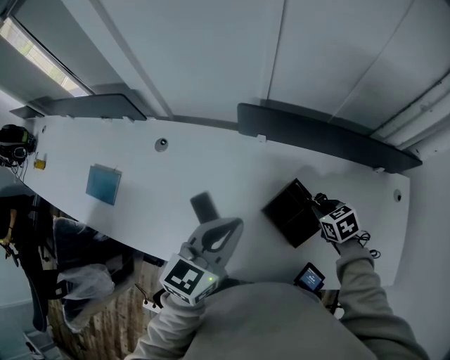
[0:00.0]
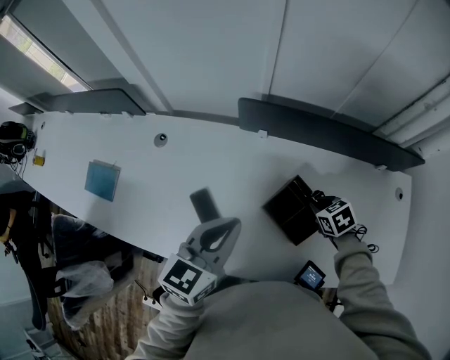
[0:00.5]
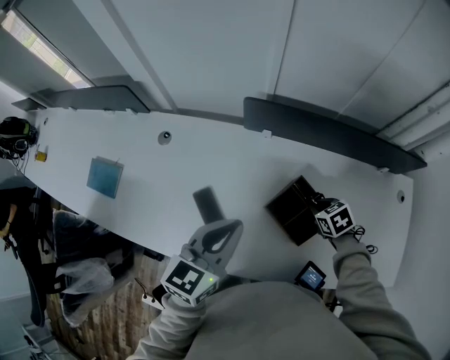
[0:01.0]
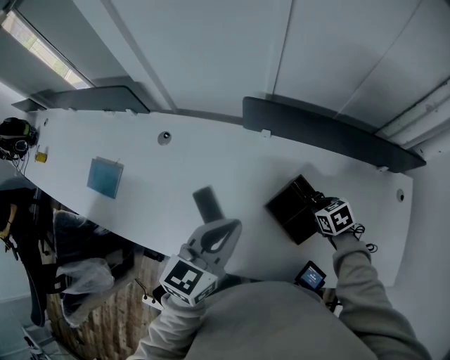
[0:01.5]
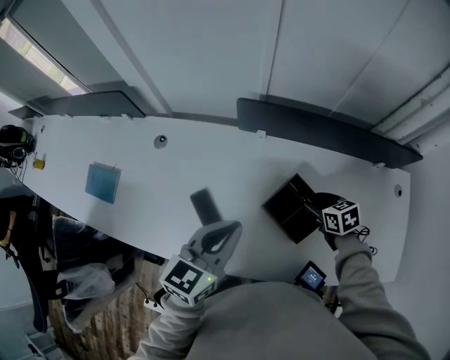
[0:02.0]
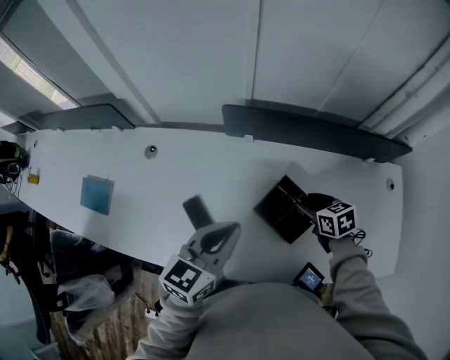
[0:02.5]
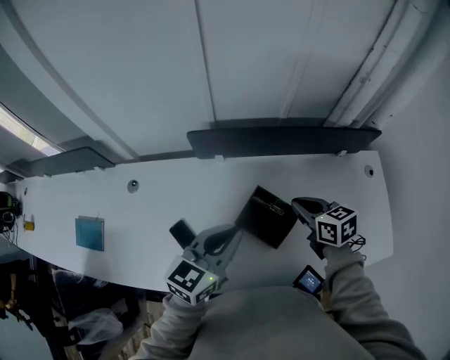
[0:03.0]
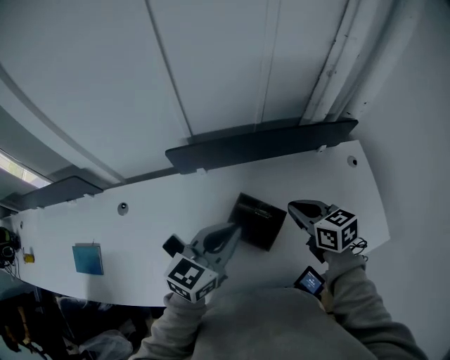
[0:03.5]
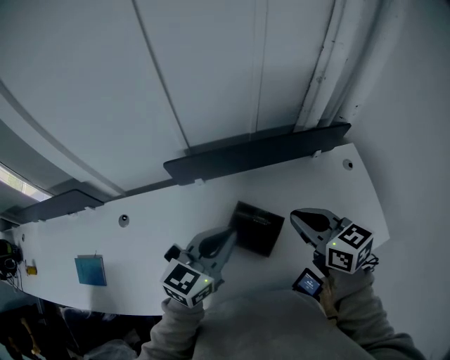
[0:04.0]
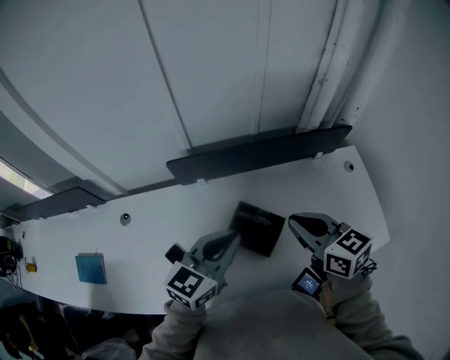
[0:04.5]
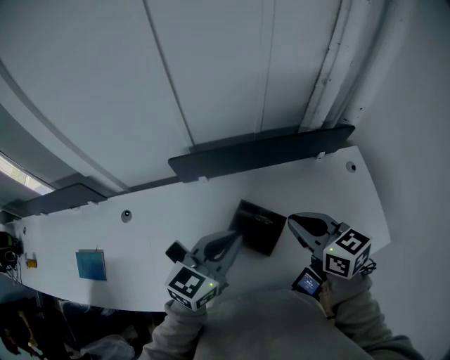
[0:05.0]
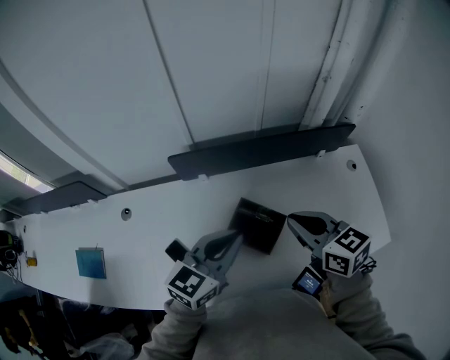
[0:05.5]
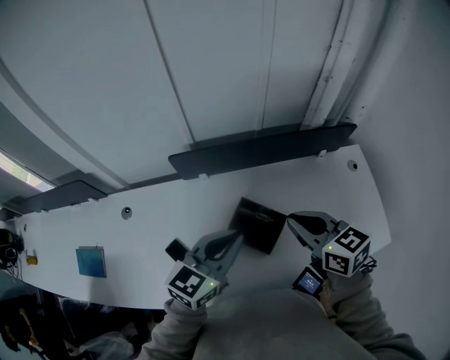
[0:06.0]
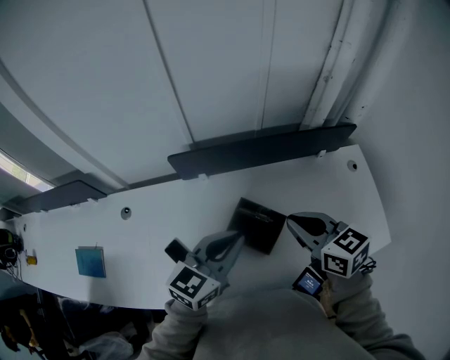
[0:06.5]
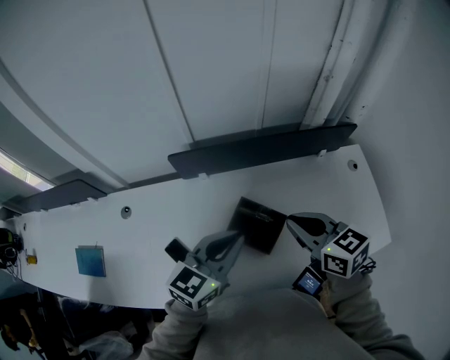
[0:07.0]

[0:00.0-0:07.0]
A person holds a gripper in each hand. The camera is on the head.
0:00.0 to 0:02.0: The right gripper opens.
0:02.0 to 0:03.5: The right gripper travels upward by roughly 15 cm, turns by about 30 degrees, and closes. Meanwhile the left gripper goes some 10 cm to the right, and changes its angle by roughly 20 degrees.
0:03.5 to 0:05.0: The right gripper moves upward, roughly 10 cm.
0:05.0 to 0:07.0: The two grippers keep their place.

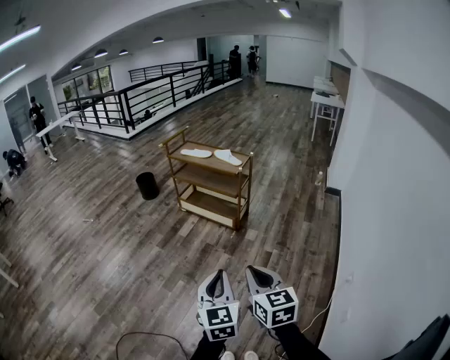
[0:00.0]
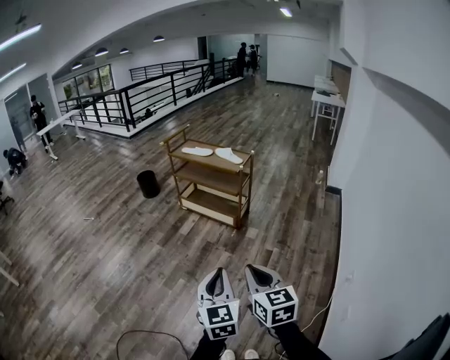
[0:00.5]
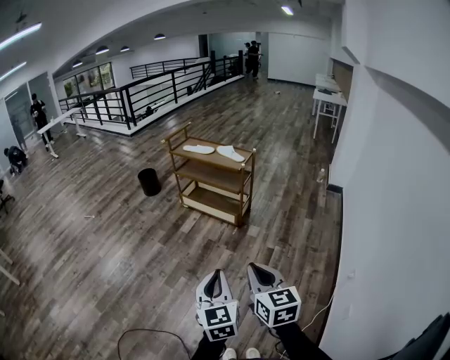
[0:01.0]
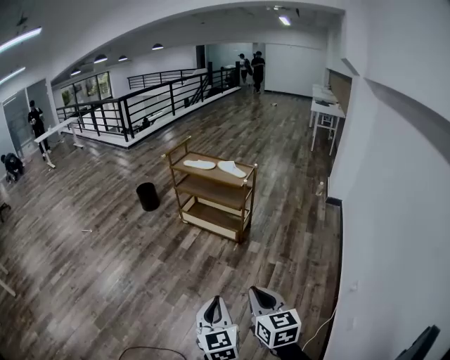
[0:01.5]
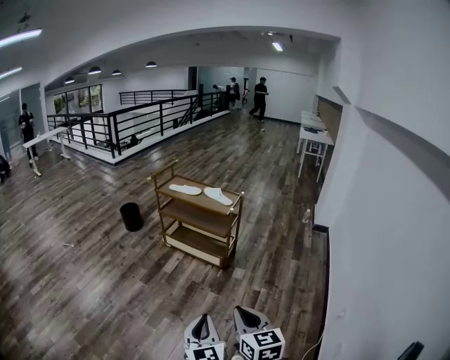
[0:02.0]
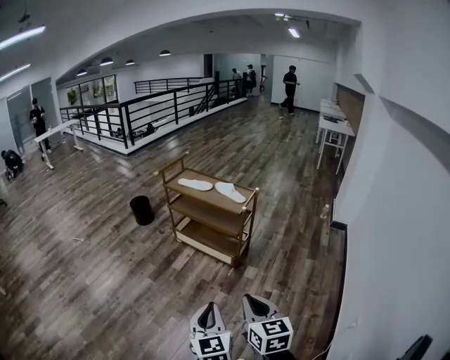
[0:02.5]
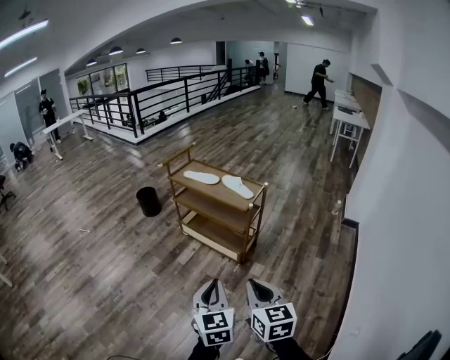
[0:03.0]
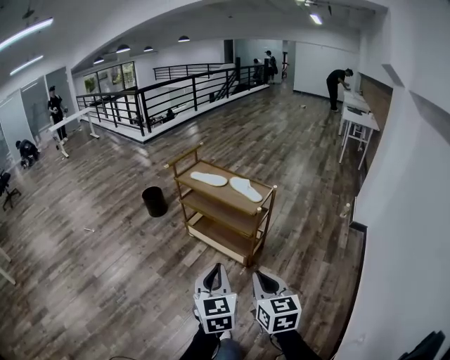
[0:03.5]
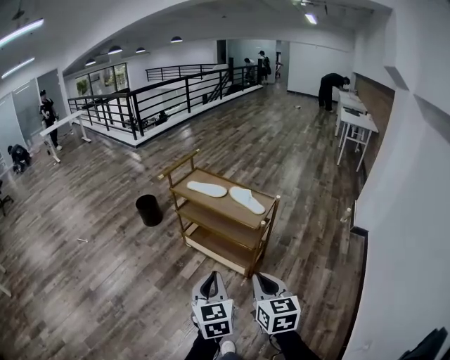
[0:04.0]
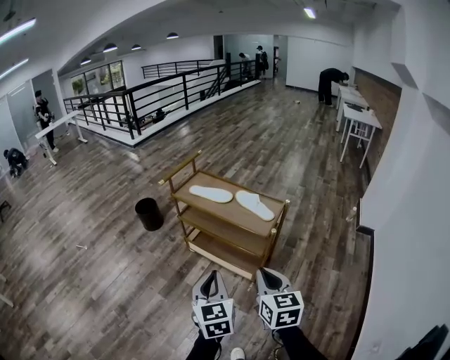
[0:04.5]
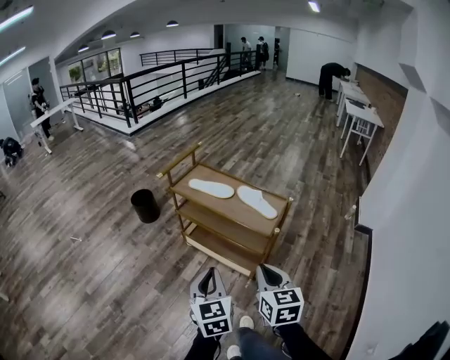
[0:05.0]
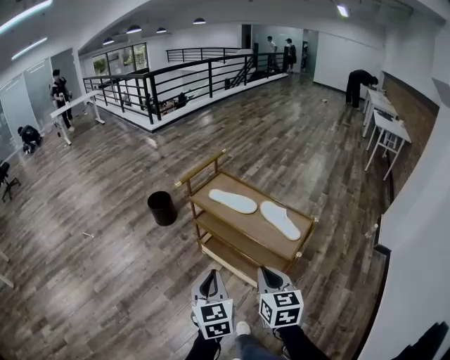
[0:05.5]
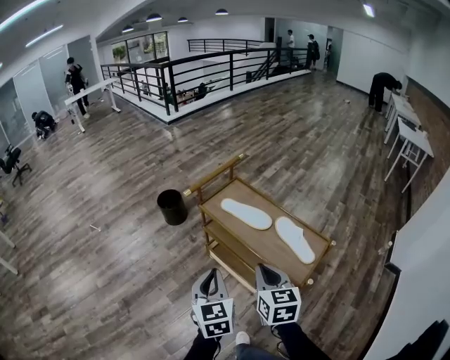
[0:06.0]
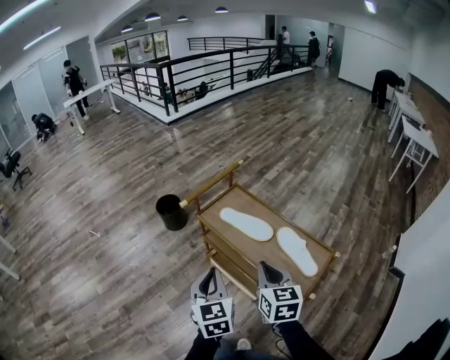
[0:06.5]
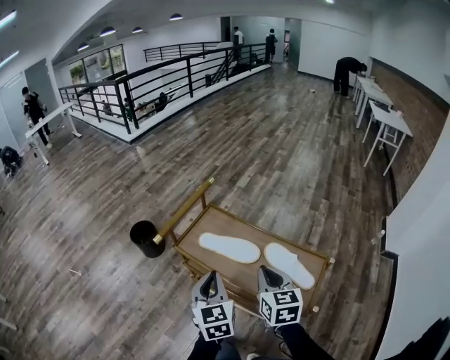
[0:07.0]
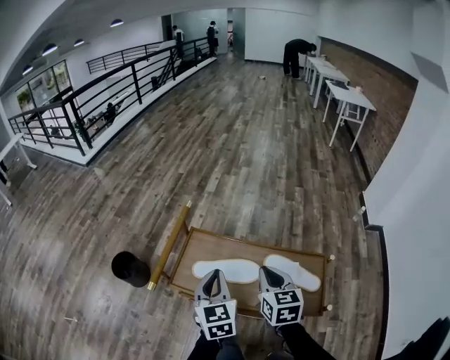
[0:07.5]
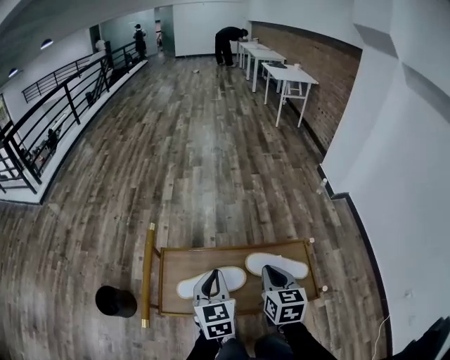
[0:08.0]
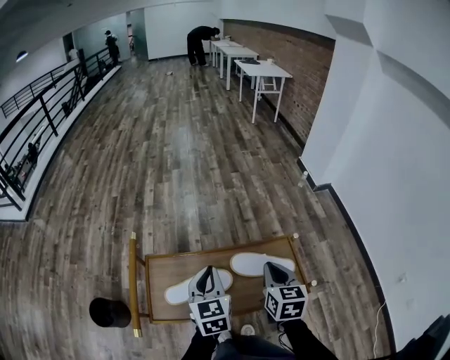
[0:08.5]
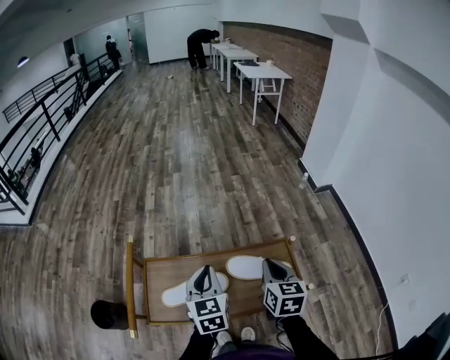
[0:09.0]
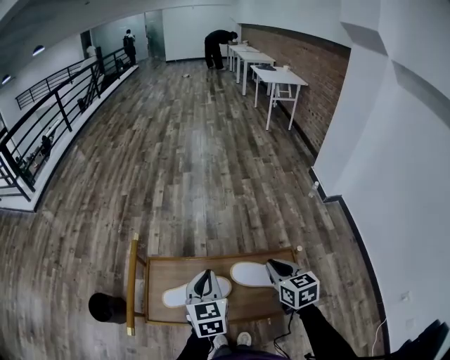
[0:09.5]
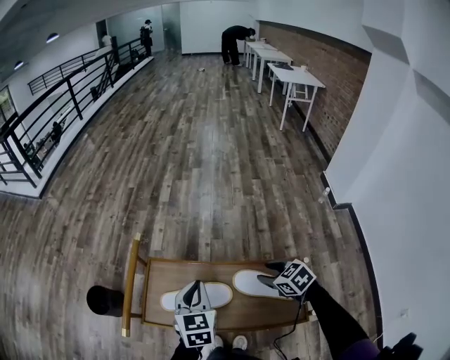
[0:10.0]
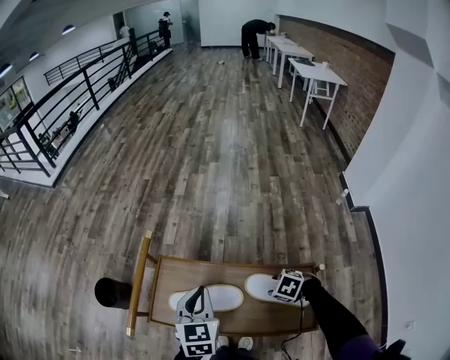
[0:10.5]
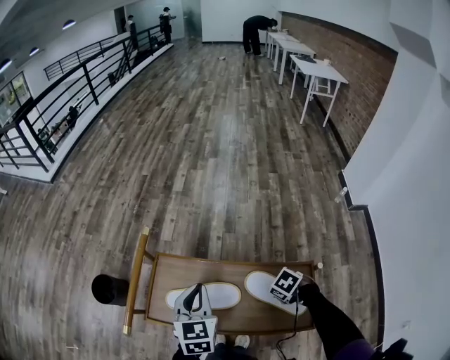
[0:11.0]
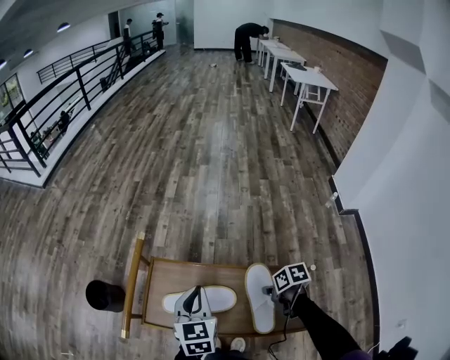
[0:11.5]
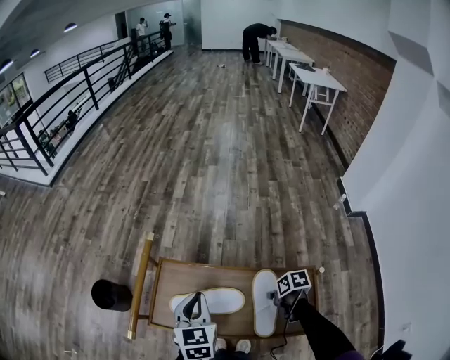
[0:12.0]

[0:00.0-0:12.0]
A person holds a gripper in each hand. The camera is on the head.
0:00.0 to 0:02.0: Both grippers travel together forward, about 10 cm.
0:02.0 to 0:04.0: The two grippers go approximately 35 cm forward.
0:04.0 to 0:06.0: The two grippers go some 35 cm forward.
0:06.0 to 0:08.0: The left gripper moves some 40 cm, and swivels some 50 degrees. The right gripper changes place by about 25 cm, and changes its angle by about 50 degrees.
0:08.0 to 0:10.0: The right gripper travels downward by roughly 10 cm, rotates roughly 50 degrees, and opens.
0:10.0 to 0:12.0: The right gripper is displaced downward by roughly 10 cm, rotates around the line of its fingers by about 50 degrees, clockwise from behind, and closes.

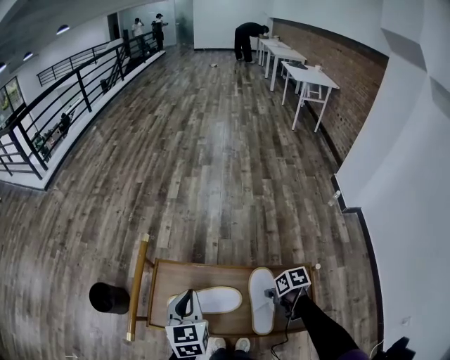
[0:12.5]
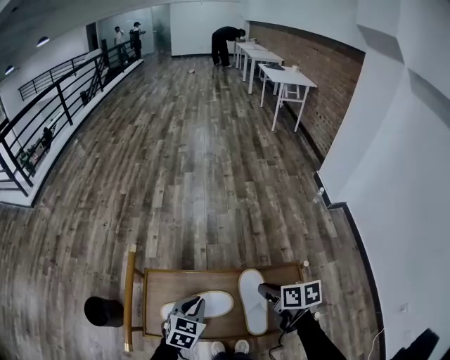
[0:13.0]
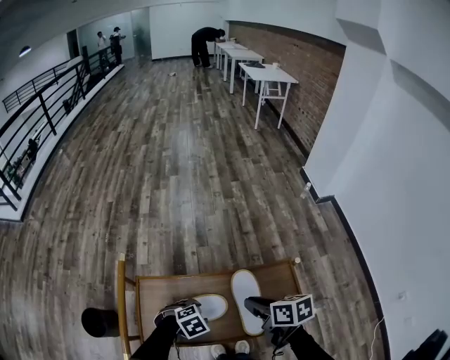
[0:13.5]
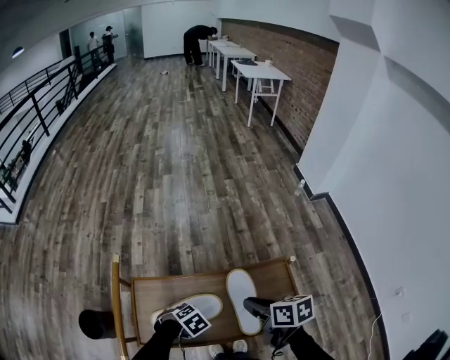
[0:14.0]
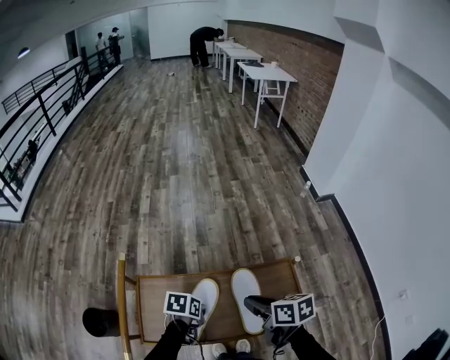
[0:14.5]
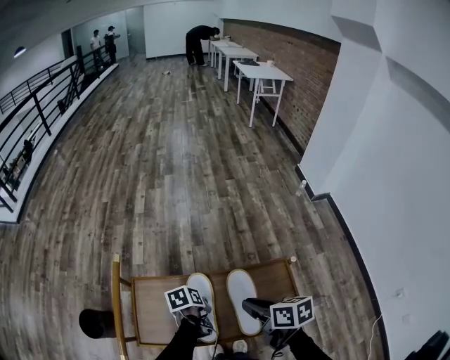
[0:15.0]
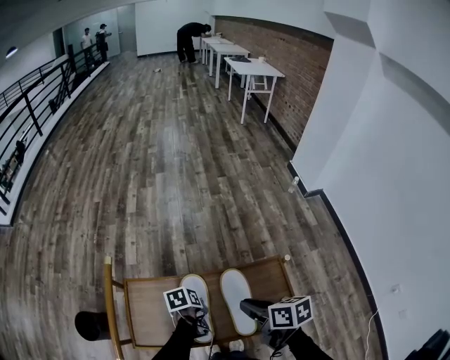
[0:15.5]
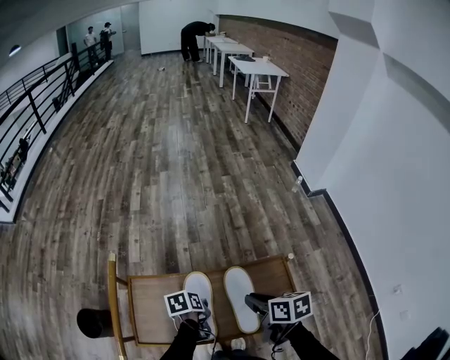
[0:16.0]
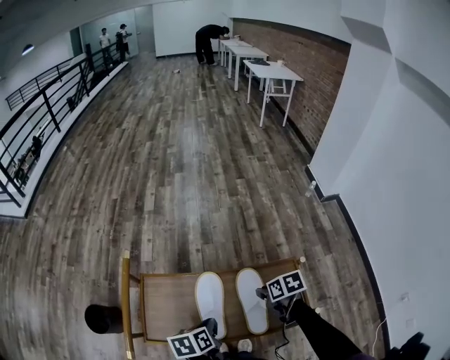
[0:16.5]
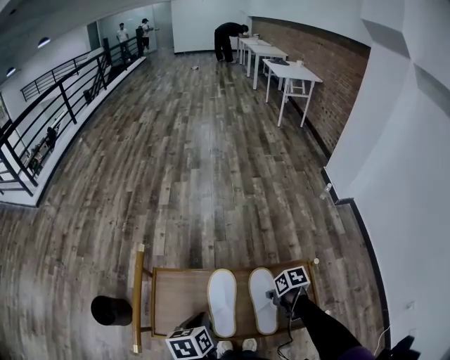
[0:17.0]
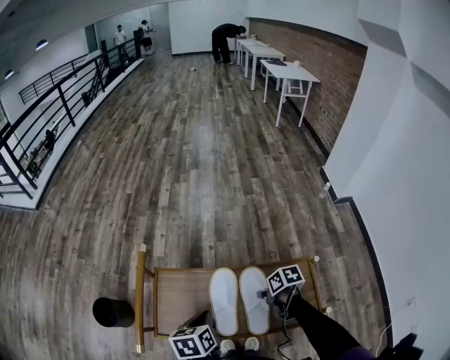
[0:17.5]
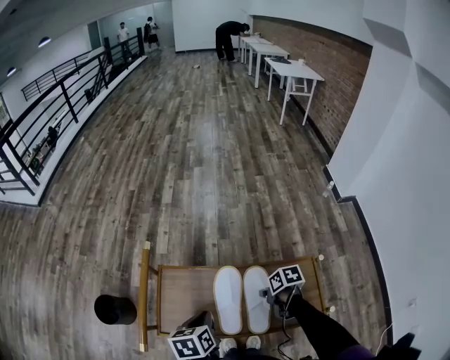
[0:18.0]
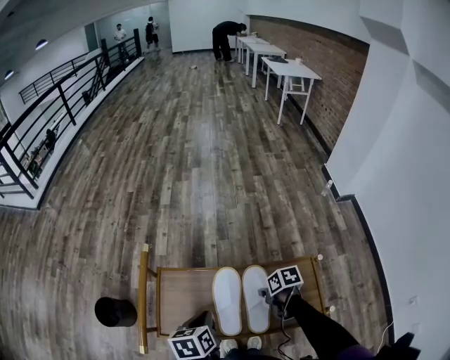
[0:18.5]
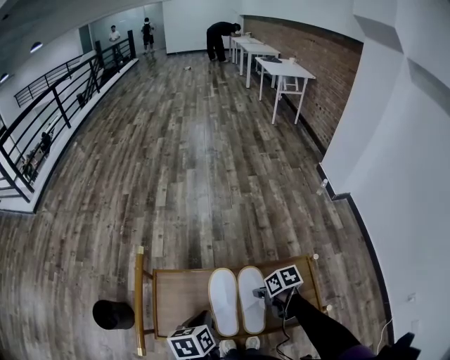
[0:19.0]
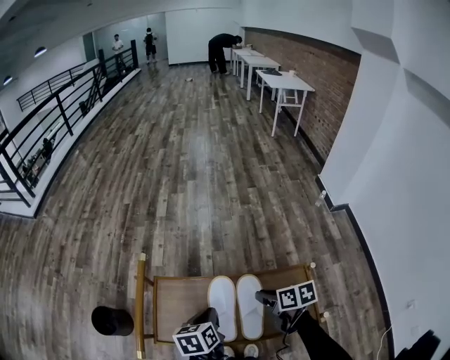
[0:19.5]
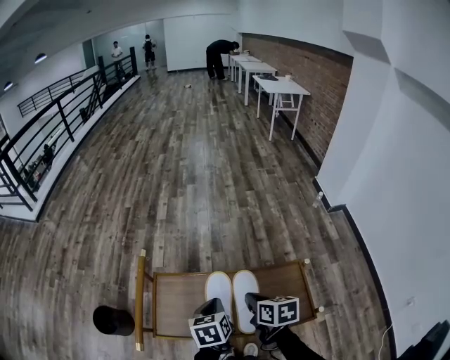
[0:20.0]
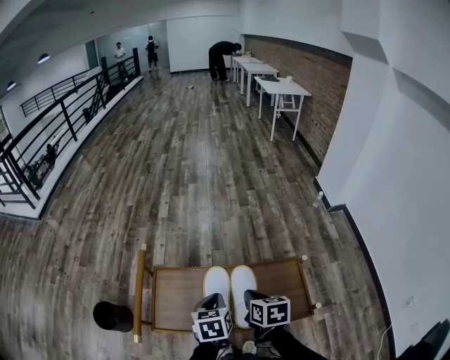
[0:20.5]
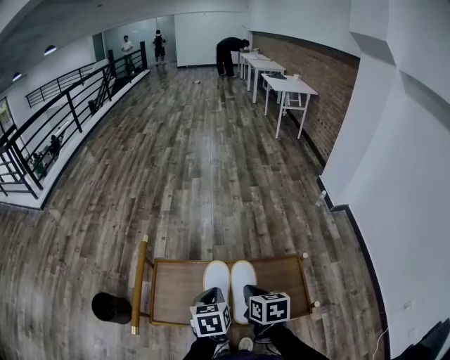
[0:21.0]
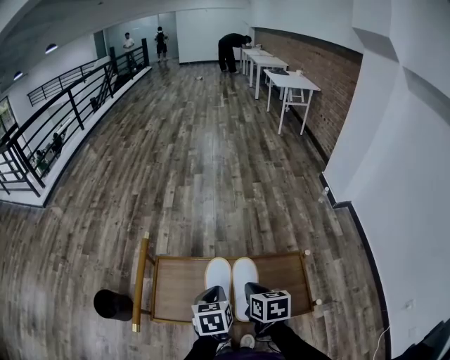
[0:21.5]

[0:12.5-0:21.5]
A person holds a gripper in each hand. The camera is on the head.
0:12.5 to 0:14.5: The right gripper heads upward, covering approximately 15 cm, and changes its angle by roughly 30 degrees; the left gripper goes roughly 15 cm downward, tips its fingers downward by about 30 degrees, and opens, then closes once more.
0:14.5 to 0:17.0: The right gripper is displaced downward by about 15 cm, and rotates roughly 30 degrees; the left gripper moves upward, roughly 10 cm, and changes its angle by approximately 40 degrees.
0:17.0 to 0:19.5: The right gripper moves upward, roughly 10 cm, and turns by roughly 30 degrees.
0:19.5 to 0:21.5: The right gripper changes place by about 5 cm, and changes its angle by some 20 degrees.
